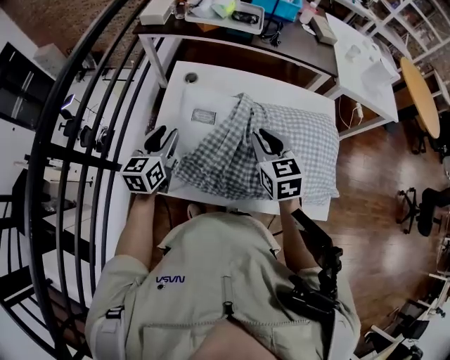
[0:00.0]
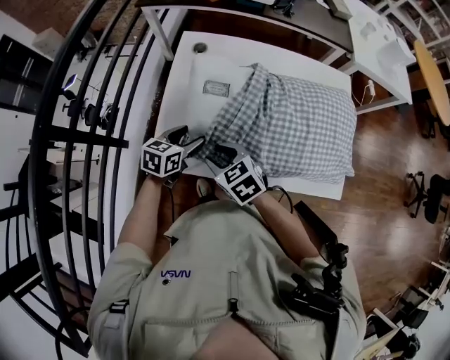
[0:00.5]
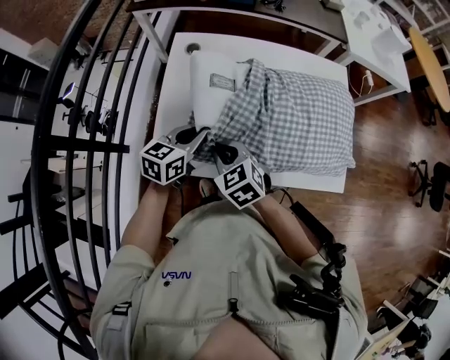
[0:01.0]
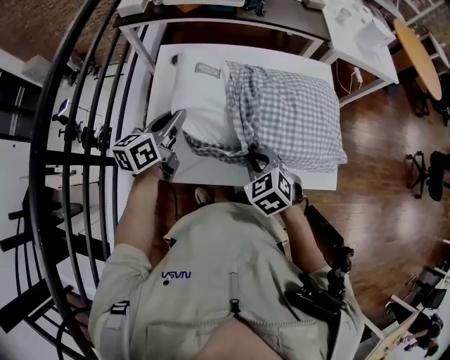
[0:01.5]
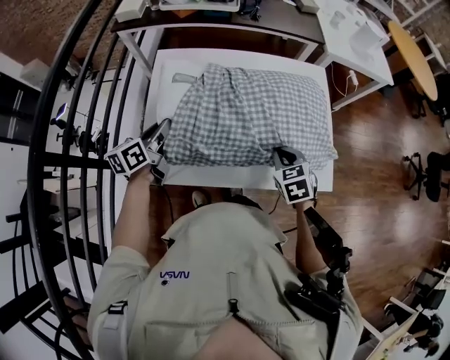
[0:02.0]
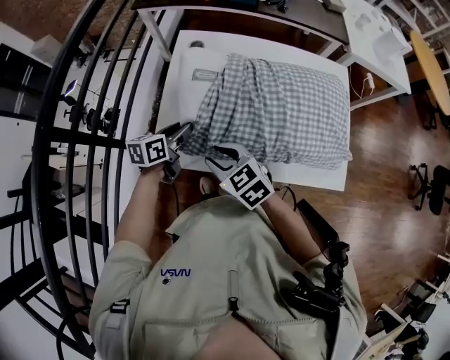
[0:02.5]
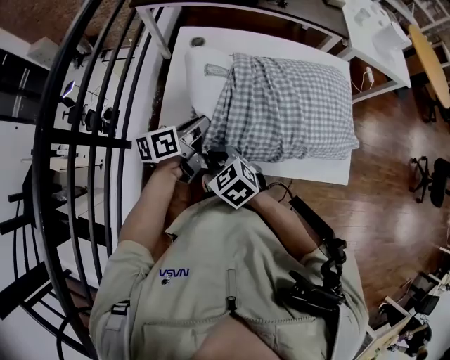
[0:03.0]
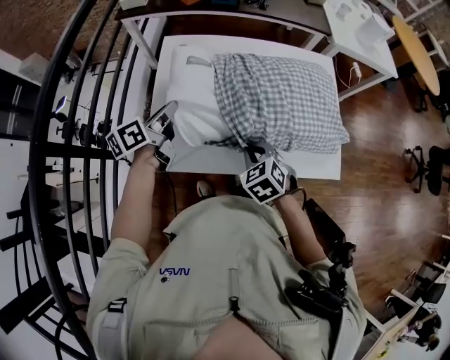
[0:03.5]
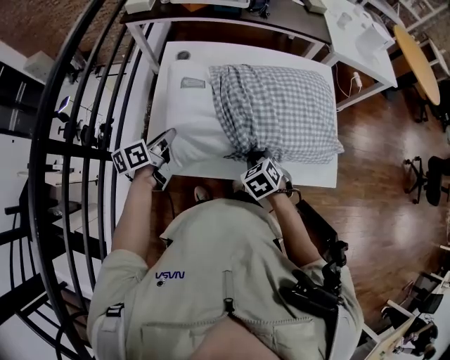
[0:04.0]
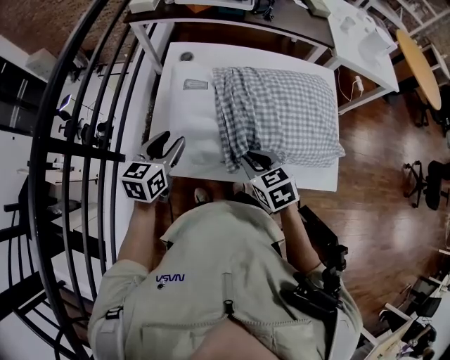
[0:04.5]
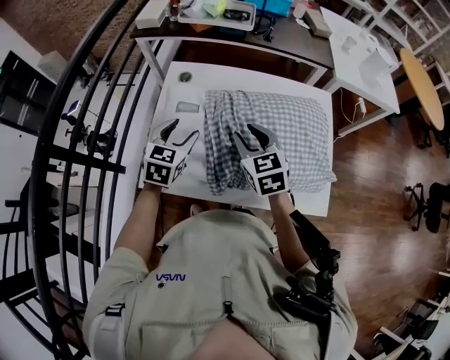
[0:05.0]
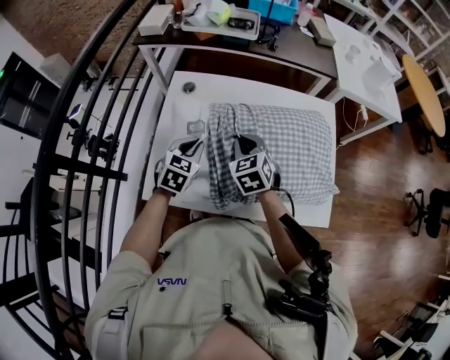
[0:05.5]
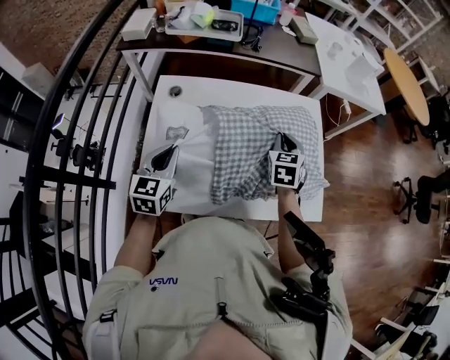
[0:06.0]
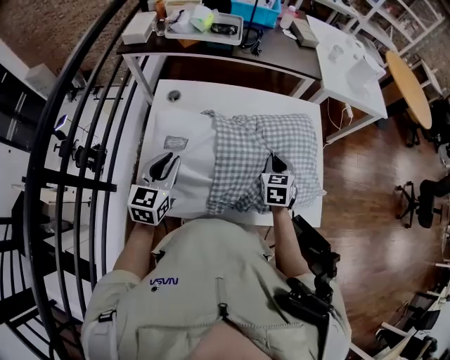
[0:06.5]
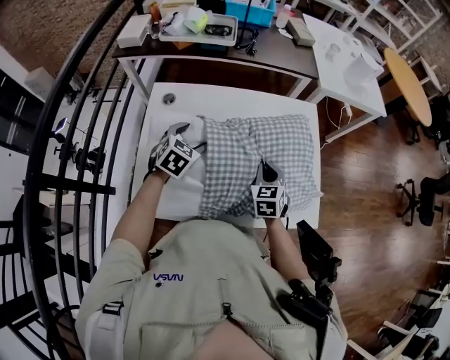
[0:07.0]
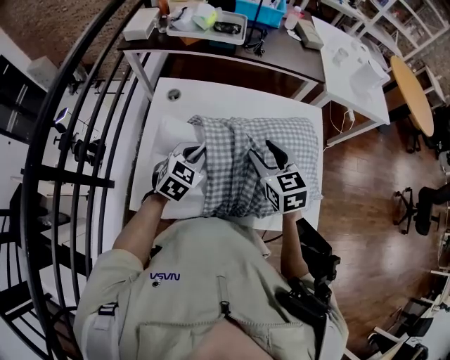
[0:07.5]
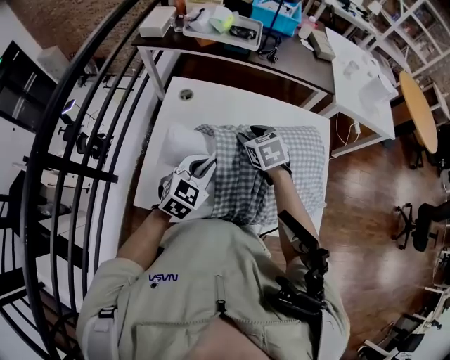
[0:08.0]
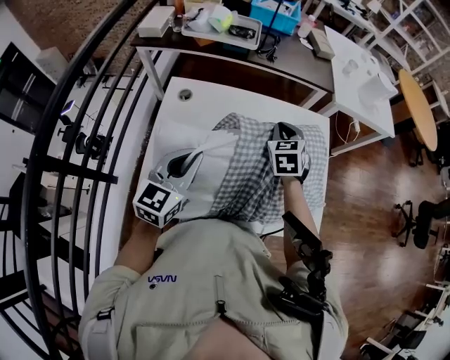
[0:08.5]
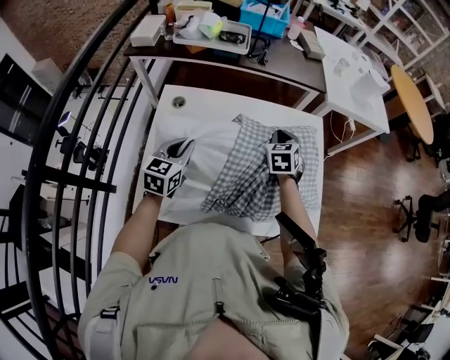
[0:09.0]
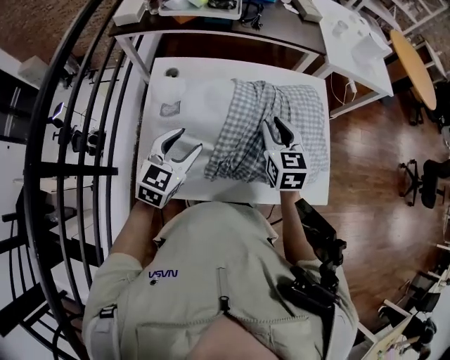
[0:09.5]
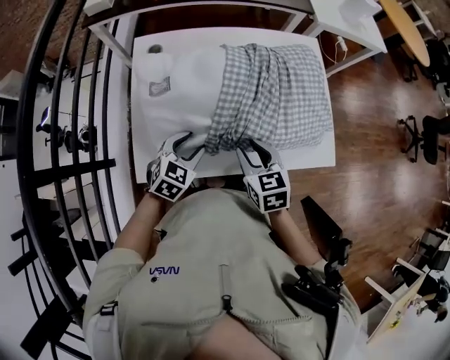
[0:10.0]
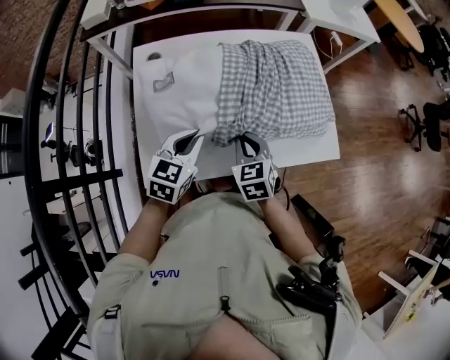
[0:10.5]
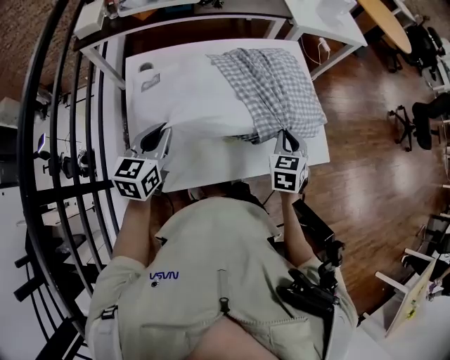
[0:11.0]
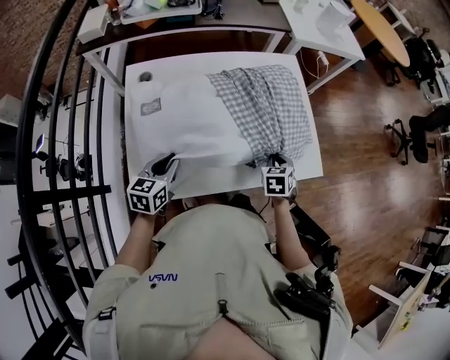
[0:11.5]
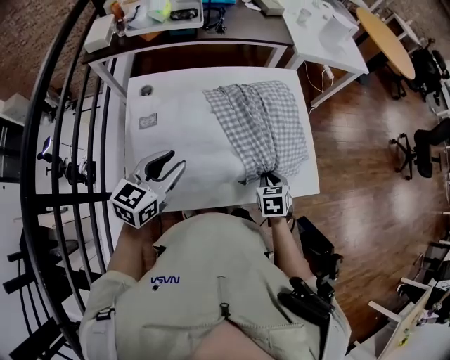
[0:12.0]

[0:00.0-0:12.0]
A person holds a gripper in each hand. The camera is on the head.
0:00.0 to 0:02.0: The left gripper moves up and down over approximately 10 cm, changing direction 2 times, turns by roughly 30 degrees, and closes its fingers. The right gripper shifts approximately 20 cm to the right, downward and backward, changes its angle by roughly 20 degrees, and opens and closes again.
0:02.0 to 0:04.0: The right gripper travels downward by about 5 cm, travels to the left and back again, about 30 cm each way, and opens, then closes again. The left gripper goes up and down, about 10 cm each way, reversing 2 times.
0:04.0 to 0:06.0: The left gripper travels upward, forward and to the right by about 10 cm, twists some 50 degrees clockwise, seen from behind, and opens, then closes once more; the right gripper is displaced forward, upward and to the right by roughly 25 cm, rotates roughly 40 degrees, and opens and closes again.
0:06.0 to 0:08.0: The left gripper travels to the right by some 10 cm, swivels roughly 20 degrees, and opens, then closes once more. The right gripper heads to the left, covering roughly 15 cm, swivels about 40 degrees, and opens.
0:08.0 to 0:10.0: The right gripper travels backward by some 20 cm, rotates roughly 30 degrees, and closes, then reopens; the left gripper moves downward and backward, about 15 cm, and opens its fingers.
0:10.0 to 0:12.0: The left gripper goes up and down, about 15 cm each way, reversing 2 times, turns by roughly 30 degrees, and closes and opens again. Meanwhile the right gripper goes some 15 cm to the right, downward and forward, changes its angle by some 20 degrees, and closes up.

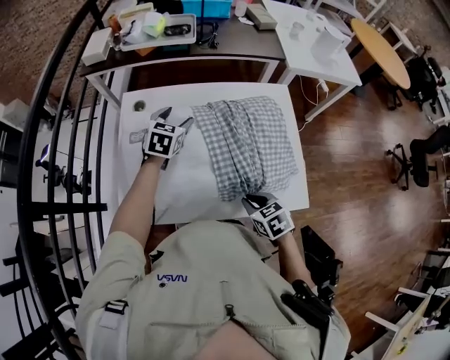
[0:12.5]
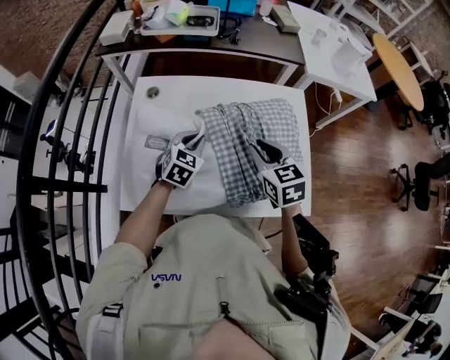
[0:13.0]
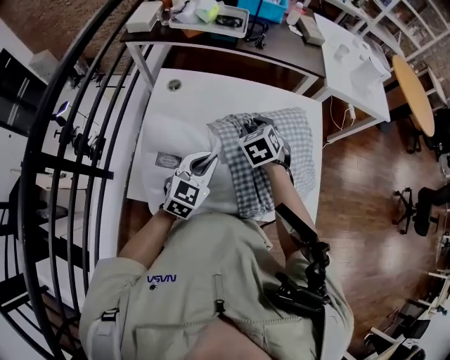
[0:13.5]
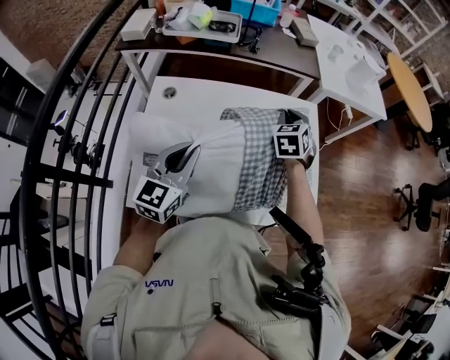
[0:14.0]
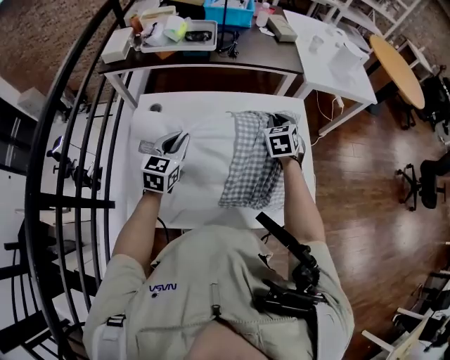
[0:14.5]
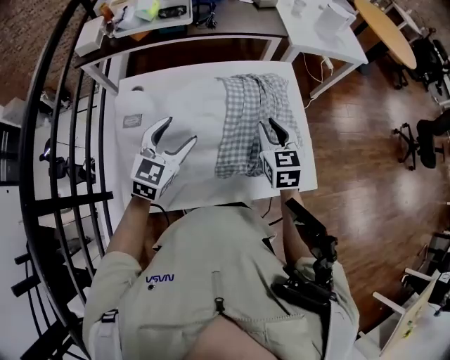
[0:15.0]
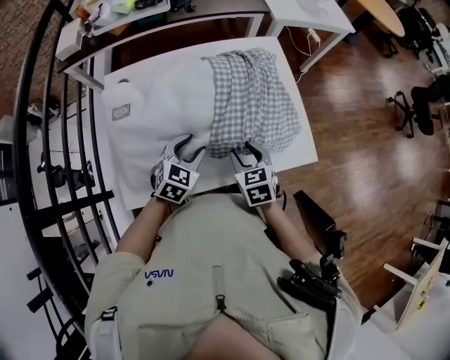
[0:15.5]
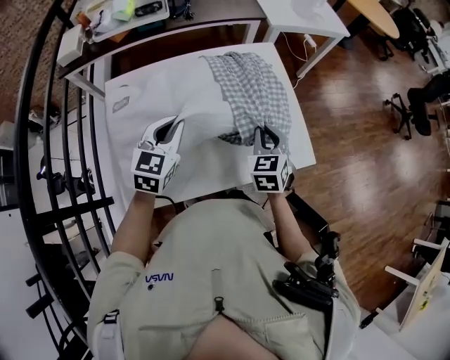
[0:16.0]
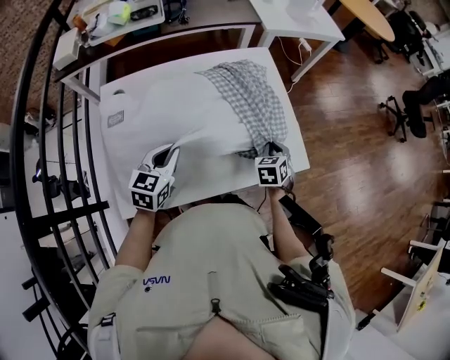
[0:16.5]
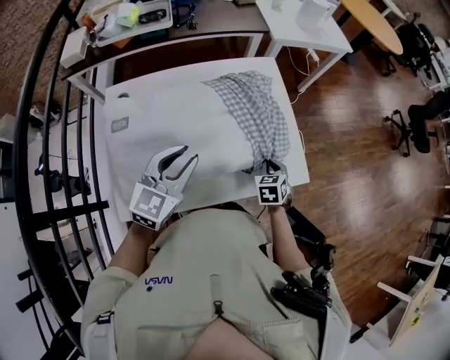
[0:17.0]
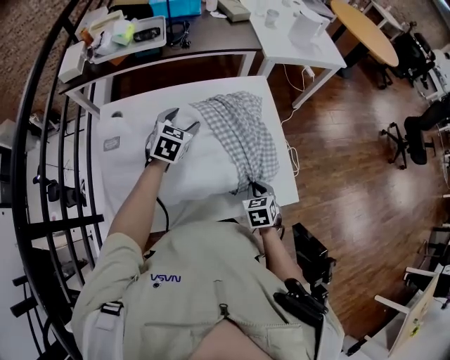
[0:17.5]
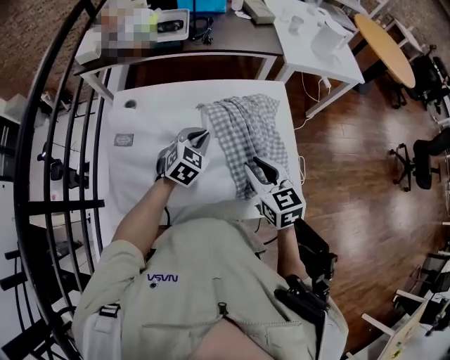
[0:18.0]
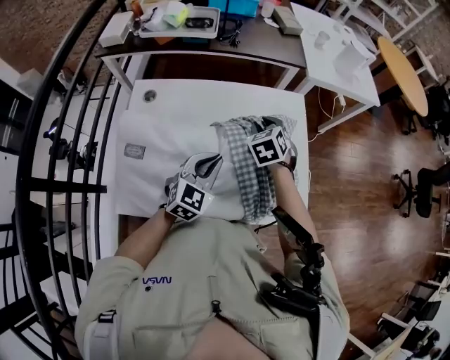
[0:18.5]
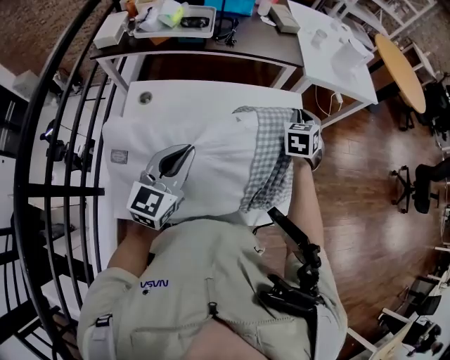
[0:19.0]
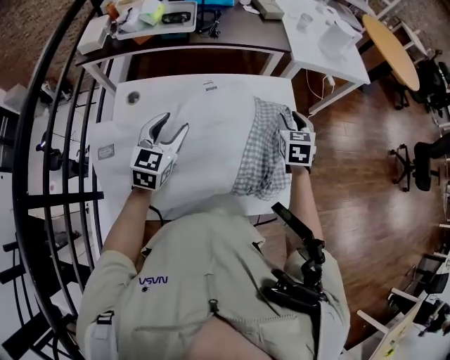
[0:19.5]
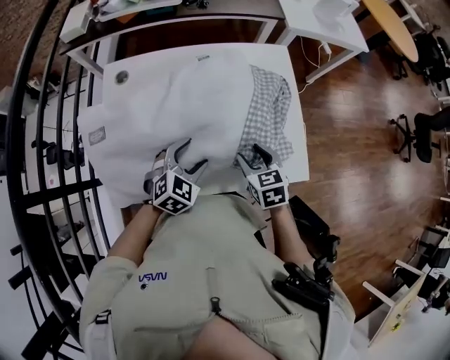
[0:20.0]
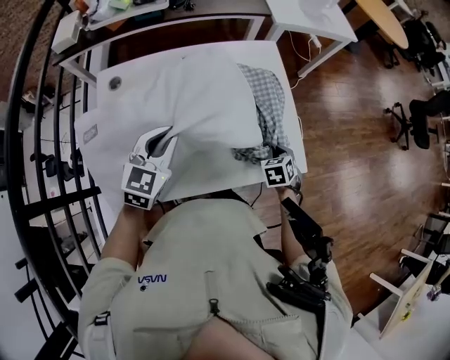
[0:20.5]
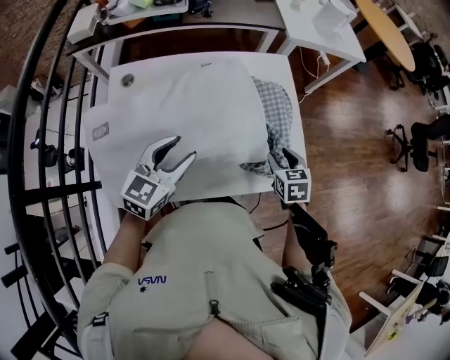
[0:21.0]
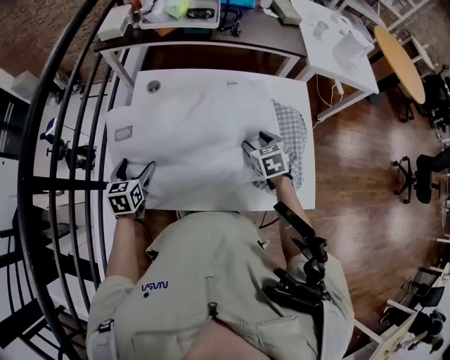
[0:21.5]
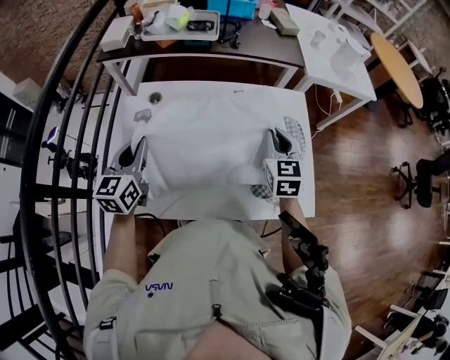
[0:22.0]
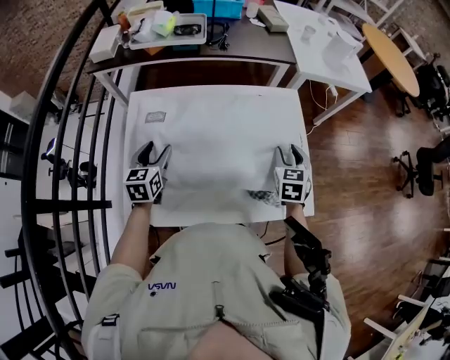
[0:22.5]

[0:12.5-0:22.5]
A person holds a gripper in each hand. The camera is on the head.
0:12.5 to 0:14.5: The right gripper travels forward by some 30 cm, turns by some 40 degrees, and opens and closes again. Meanwhile the left gripper reaches about 15 cm backward, then returns, and closes up.
0:14.5 to 0:16.5: The left gripper heads backward and to the right, covering approximately 10 cm, and opens and closes again. The right gripper shifts some 30 cm backward, to the right and downward, changes its angle by approximately 20 degrees, and opens, then closes once more.
0:16.5 to 0:18.5: The right gripper changes place by about 25 cm, changes its angle by about 30 degrees, and opens its fingers, while the left gripper goes upward and returns, about 10 cm each way, and opens and closes again.
0:18.5 to 0:20.5: The right gripper goes about 30 cm to the right, backward and downward, swivels approximately 30 degrees, and closes up. The left gripper swings up and down, some 15 cm each way, with 2 reversals, and opens, then closes once more.
0:20.5 to 0:22.5: The right gripper travels upward by roughly 15 cm, turns by roughly 30 degrees, and opens its fingers. The left gripper swings up and down, roughly 15 cm each way, with 2 reversals, turns by roughly 40 degrees, and opens.

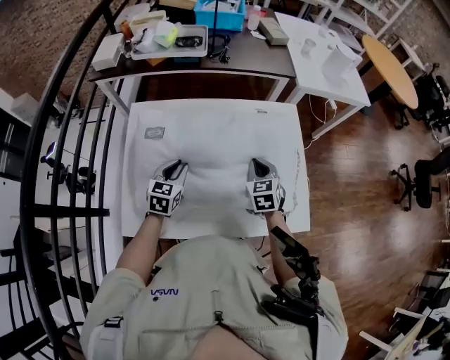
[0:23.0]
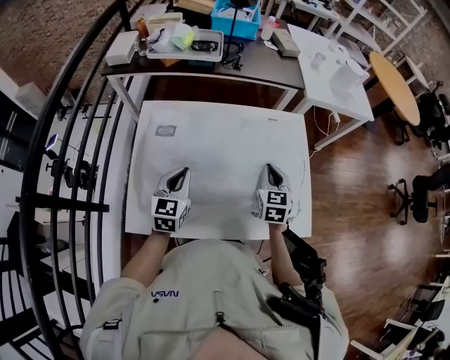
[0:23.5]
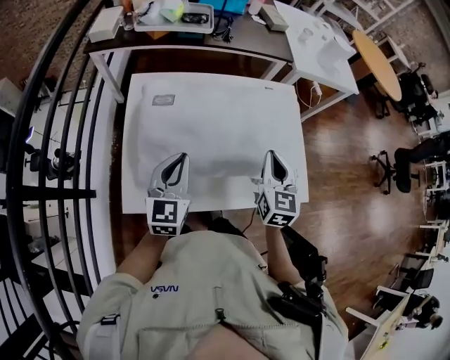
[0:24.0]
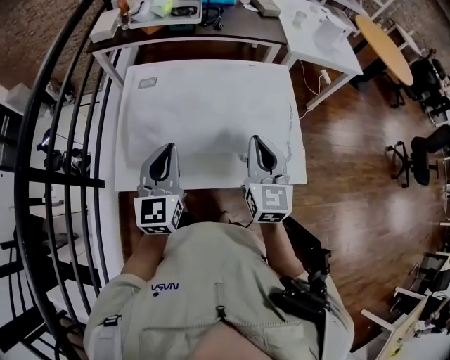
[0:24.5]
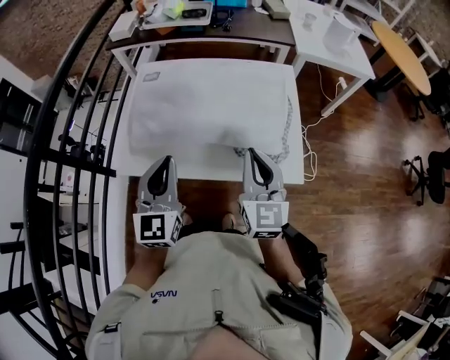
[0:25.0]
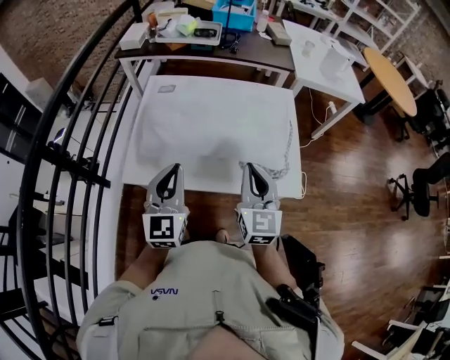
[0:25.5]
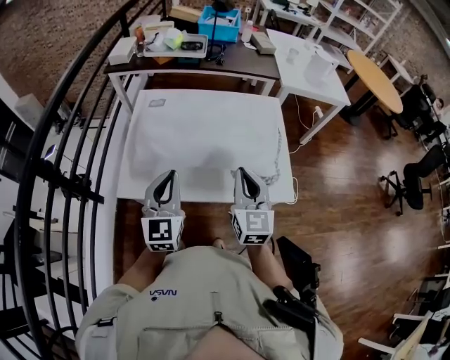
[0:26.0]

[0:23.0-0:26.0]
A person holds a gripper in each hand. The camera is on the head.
0:23.0 to 0:24.5: The grippers both shift backward and upward by some 25 cm. The left gripper changes its angle by about 30 degrees. Meanwhile the right gripper changes its angle by approximately 30 degrees.
0:24.5 to 0:26.0: Both grippers move backward, roughly 5 cm.

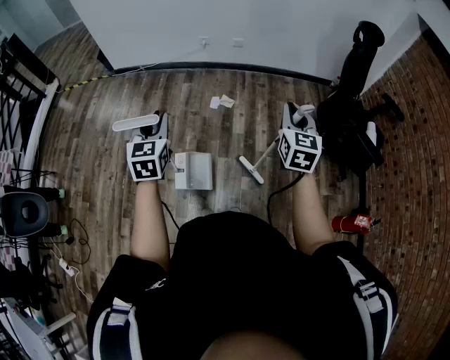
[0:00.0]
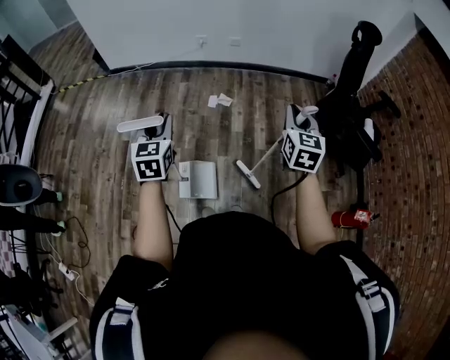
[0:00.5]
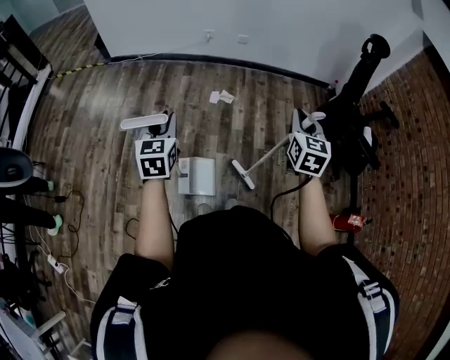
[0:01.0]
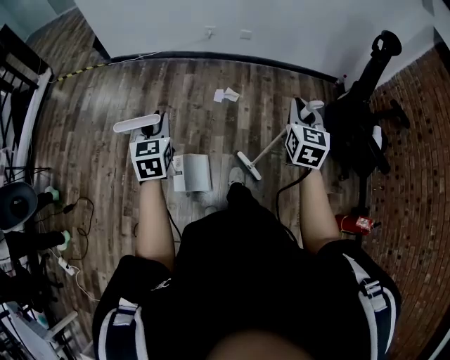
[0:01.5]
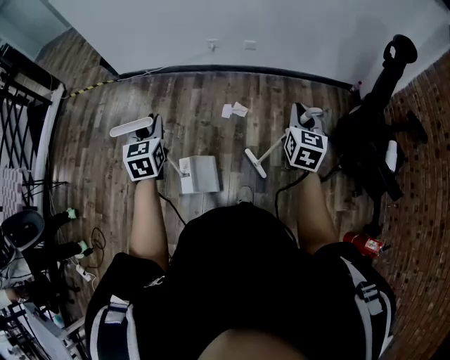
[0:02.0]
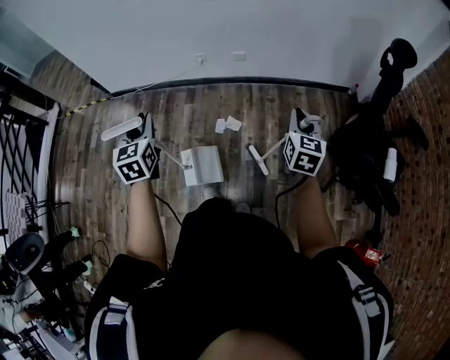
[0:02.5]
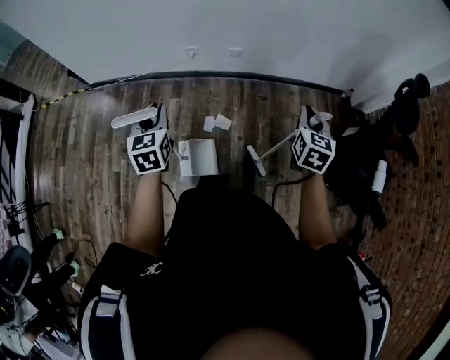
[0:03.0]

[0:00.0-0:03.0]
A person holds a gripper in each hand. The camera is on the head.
0:00.0 to 0:01.5: The right gripper goes roughly 10 cm forward and to the left. The left gripper is displaced to the left, forward and downward by roughly 10 cm.
0:01.5 to 0:03.0: The two grippers go roughly 40 cm forward.
